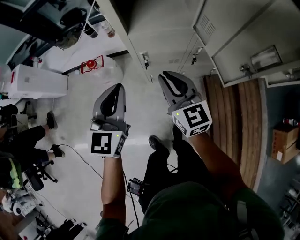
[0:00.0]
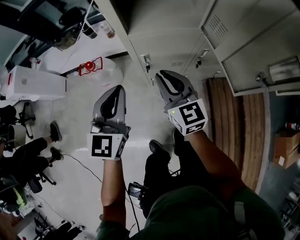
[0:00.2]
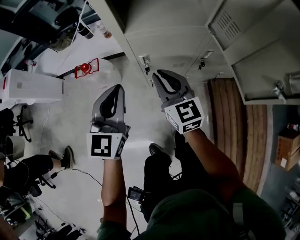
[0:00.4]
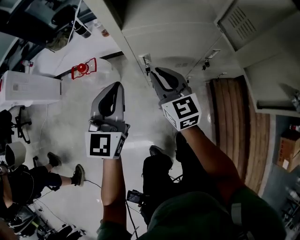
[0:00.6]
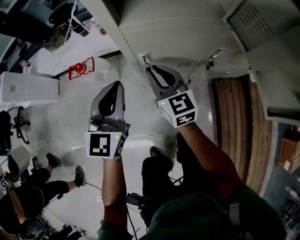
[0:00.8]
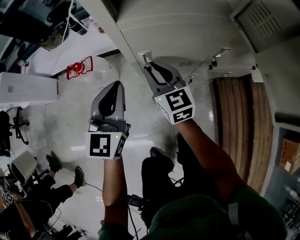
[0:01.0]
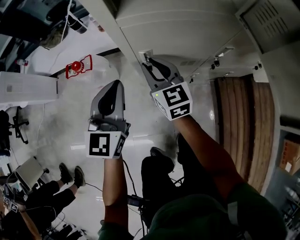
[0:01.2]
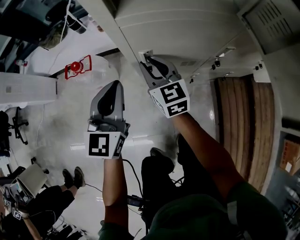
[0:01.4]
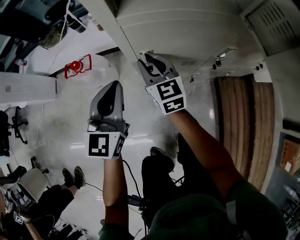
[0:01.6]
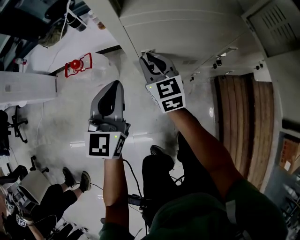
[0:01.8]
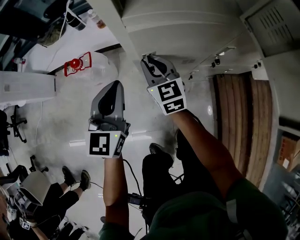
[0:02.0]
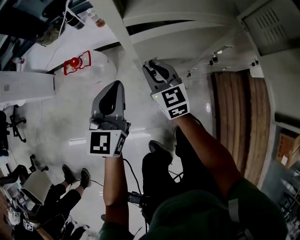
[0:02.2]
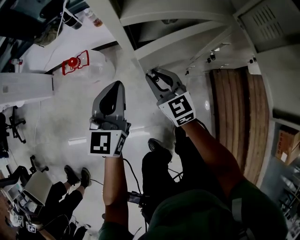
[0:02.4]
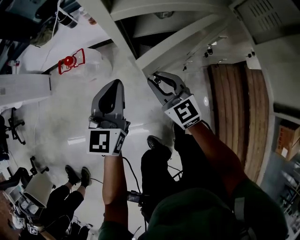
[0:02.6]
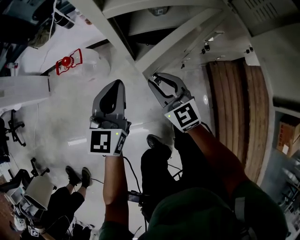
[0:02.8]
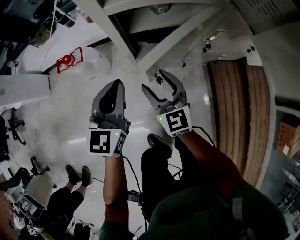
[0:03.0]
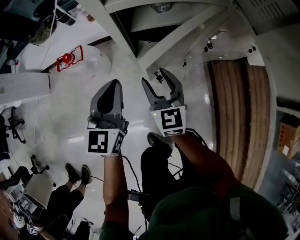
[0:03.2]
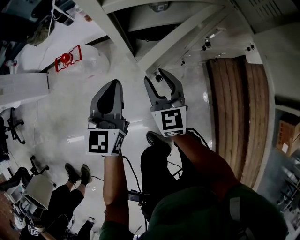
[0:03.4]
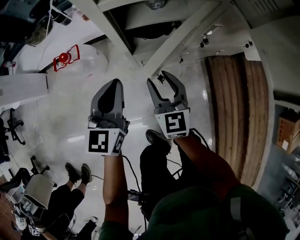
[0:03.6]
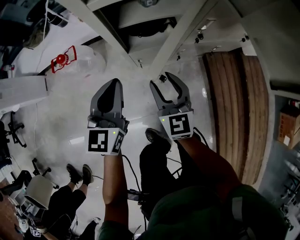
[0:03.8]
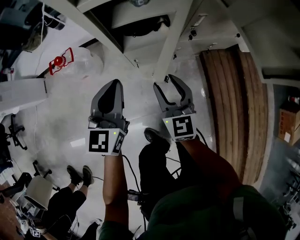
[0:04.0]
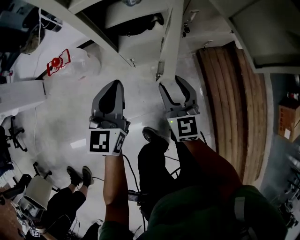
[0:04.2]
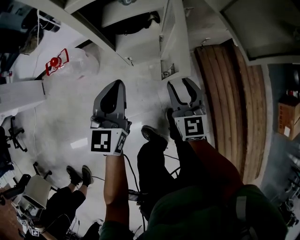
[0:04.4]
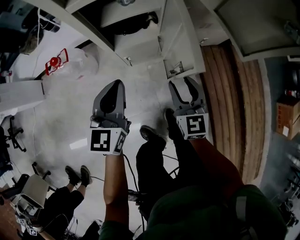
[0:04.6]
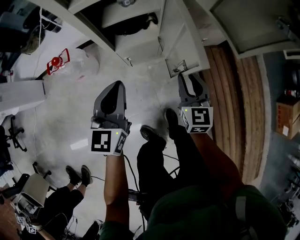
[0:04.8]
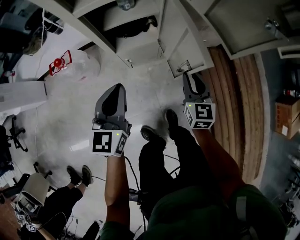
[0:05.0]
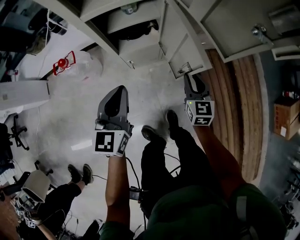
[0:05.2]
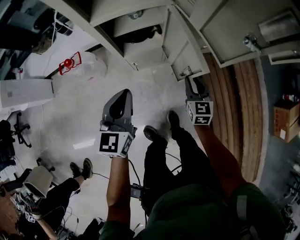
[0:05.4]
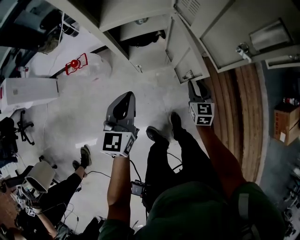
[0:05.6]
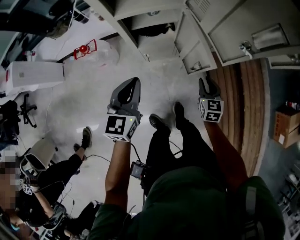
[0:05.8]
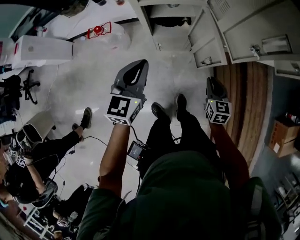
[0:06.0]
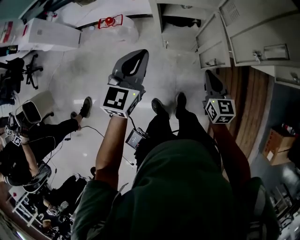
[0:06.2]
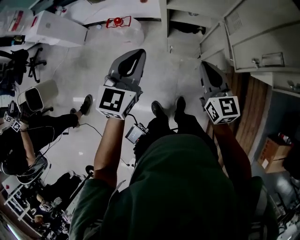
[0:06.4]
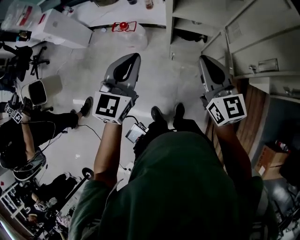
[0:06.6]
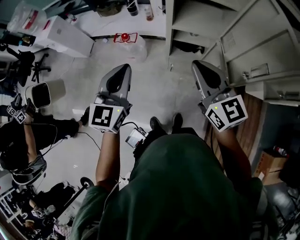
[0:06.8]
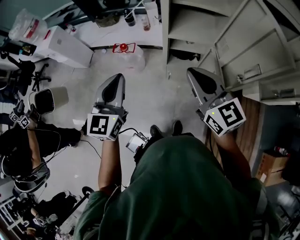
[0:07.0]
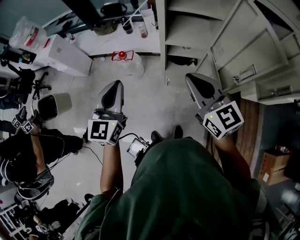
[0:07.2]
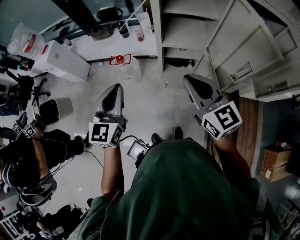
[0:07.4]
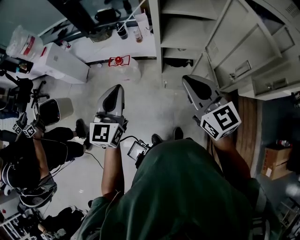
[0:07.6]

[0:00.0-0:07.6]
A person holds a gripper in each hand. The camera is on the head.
0.0 to 1.6 s: Both grippers move downward and forward, some 25 cm.
1.6 to 3.0 s: The right gripper shifts roughly 15 cm backward, and opens its fingers.
3.0 to 4.6 s: The right gripper travels to the right and backward by roughly 20 cm. The left gripper is displaced to the right and backward by roughly 10 cm.
4.6 to 6.0 s: The left gripper heads upward, covering roughly 15 cm, while the right gripper moves upward and to the right, about 10 cm, and closes its fingers.
6.0 to 7.6 s: The right gripper shifts roughly 35 cm upward, and rotates about 40 degrees; the left gripper heads upward, covering roughly 15 cm, and turns by about 20 degrees.

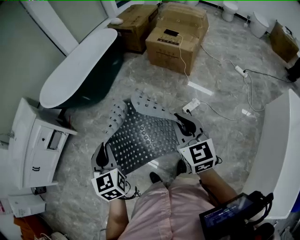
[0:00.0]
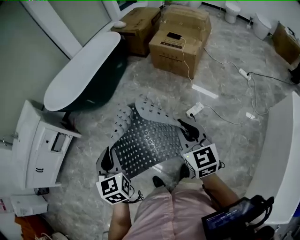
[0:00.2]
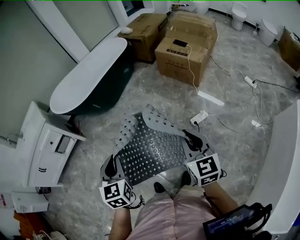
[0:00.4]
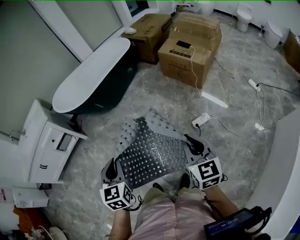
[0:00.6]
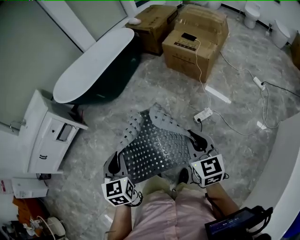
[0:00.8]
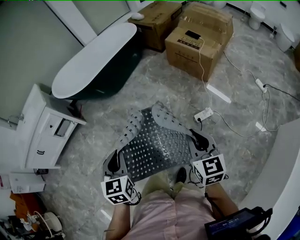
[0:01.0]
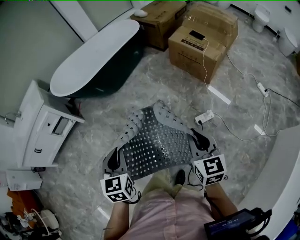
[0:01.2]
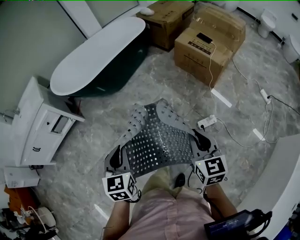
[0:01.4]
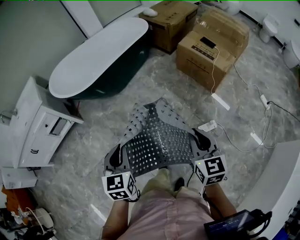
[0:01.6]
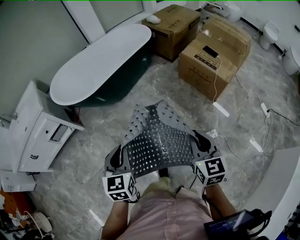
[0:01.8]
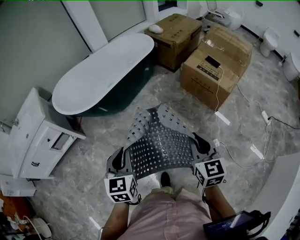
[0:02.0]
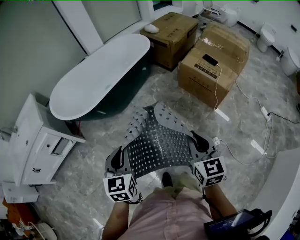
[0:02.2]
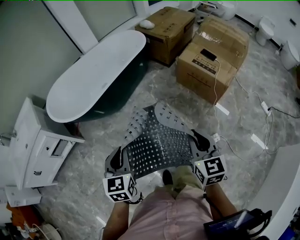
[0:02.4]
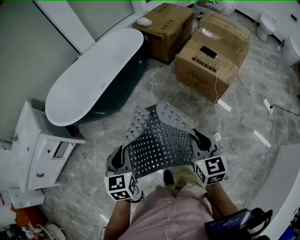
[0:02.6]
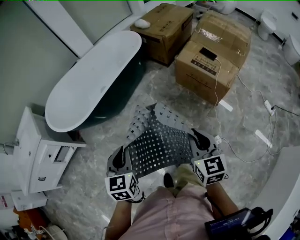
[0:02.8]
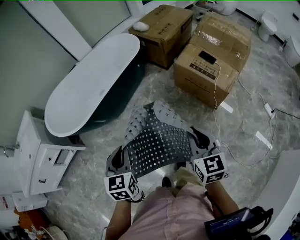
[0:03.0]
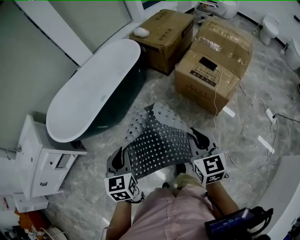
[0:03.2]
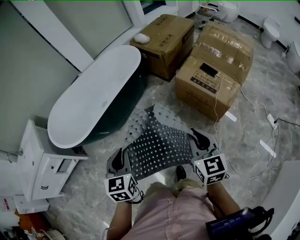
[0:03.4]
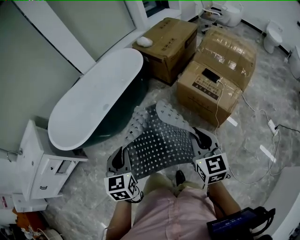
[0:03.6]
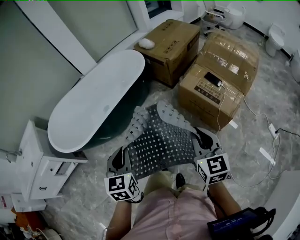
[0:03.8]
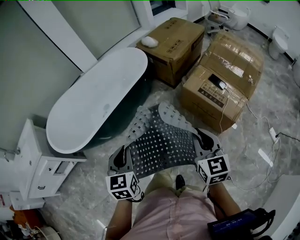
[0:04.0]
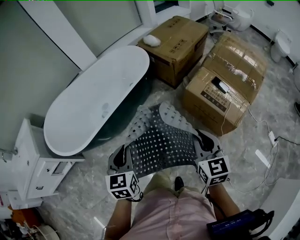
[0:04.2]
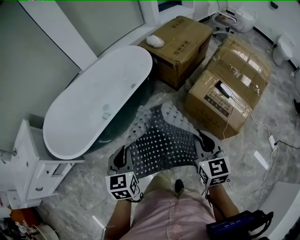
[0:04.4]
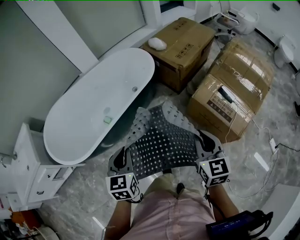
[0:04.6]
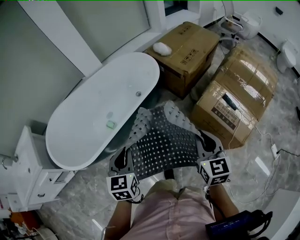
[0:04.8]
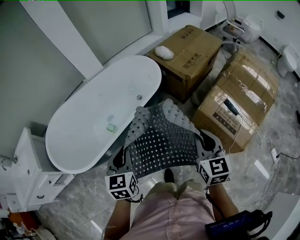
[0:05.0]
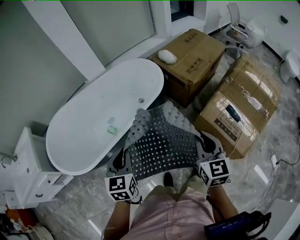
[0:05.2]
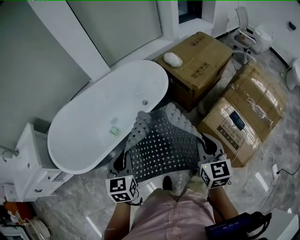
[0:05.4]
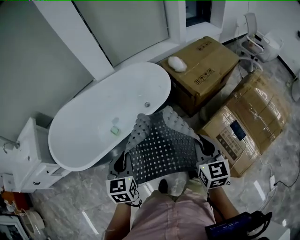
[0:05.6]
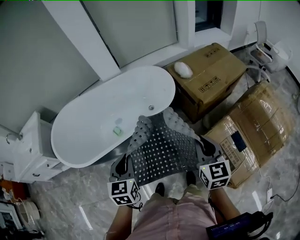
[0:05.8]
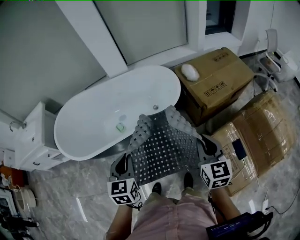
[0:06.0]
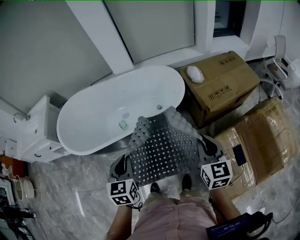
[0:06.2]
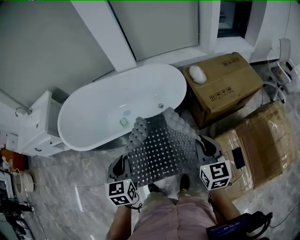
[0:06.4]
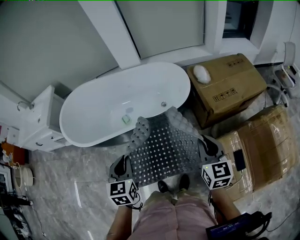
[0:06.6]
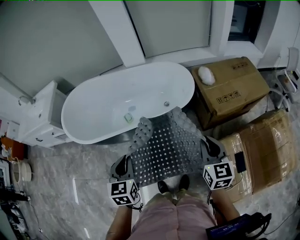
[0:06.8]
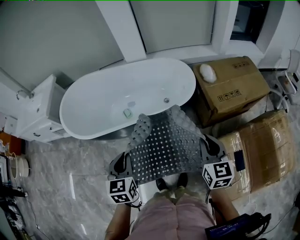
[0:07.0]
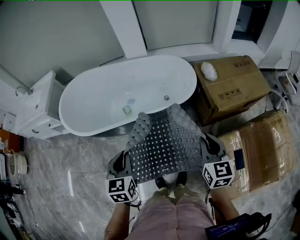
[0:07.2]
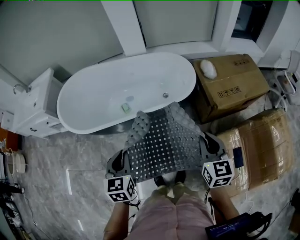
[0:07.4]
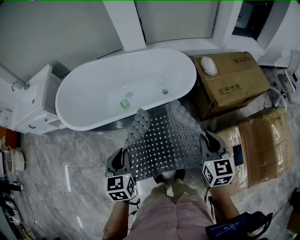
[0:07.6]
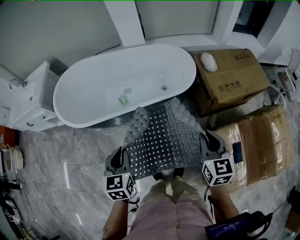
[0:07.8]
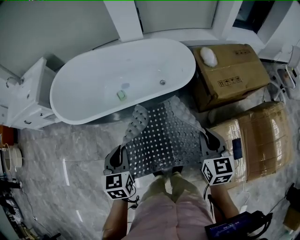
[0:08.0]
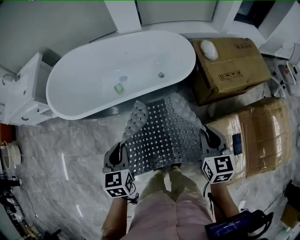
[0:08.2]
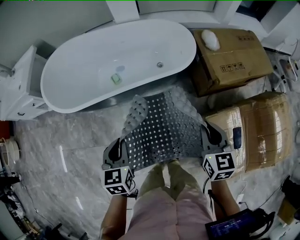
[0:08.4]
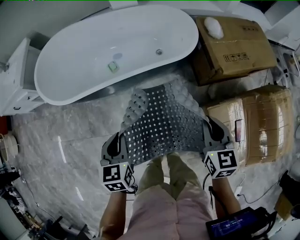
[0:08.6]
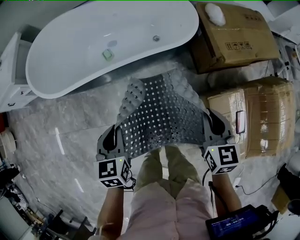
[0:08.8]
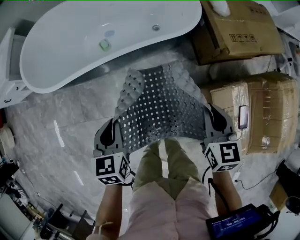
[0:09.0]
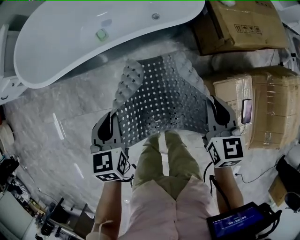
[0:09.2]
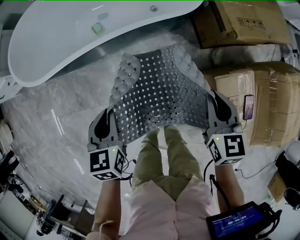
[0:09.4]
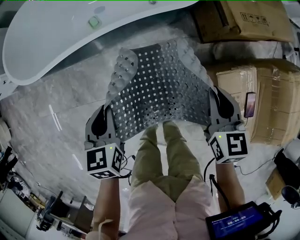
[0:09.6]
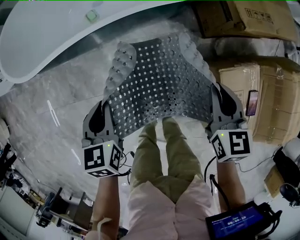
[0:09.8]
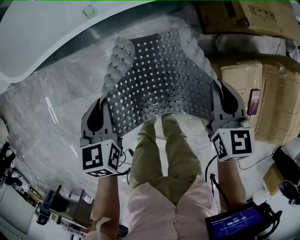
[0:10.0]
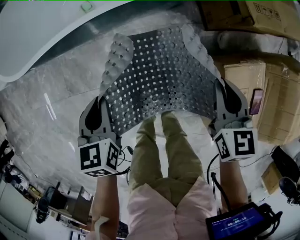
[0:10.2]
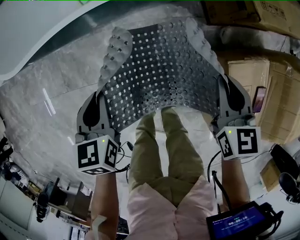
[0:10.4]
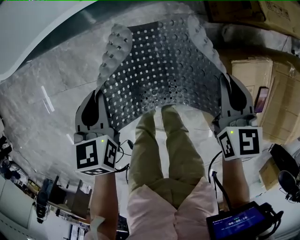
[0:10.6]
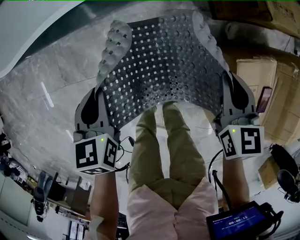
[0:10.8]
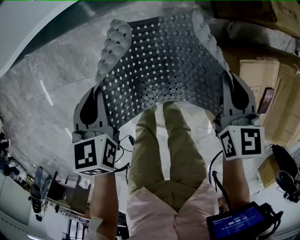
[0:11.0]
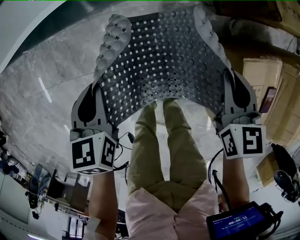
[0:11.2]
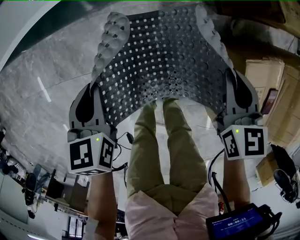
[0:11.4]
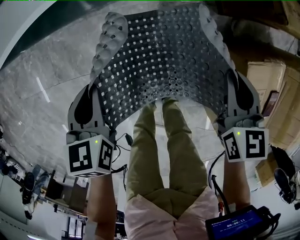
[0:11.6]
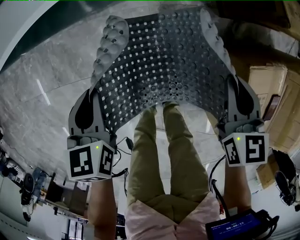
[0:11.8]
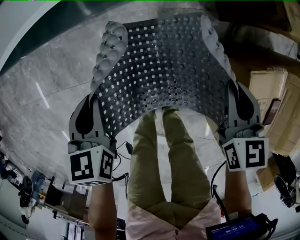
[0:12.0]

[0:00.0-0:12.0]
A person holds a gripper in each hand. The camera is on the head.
0.0 to 1.6 s: The grippers both shift forward and downward by approximately 20 cm.
1.6 to 3.0 s: The grippers both shift forward by roughly 25 cm.
3.0 to 4.4 s: The two grippers go roughly 25 cm forward.
4.4 to 6.0 s: The left gripper moves forward, about 15 cm, and turns by about 20 degrees; the right gripper is displaced forward by some 30 cm, and rotates about 20 degrees.
6.0 to 7.6 s: The left gripper ends up some 5 cm from where it was.
7.6 to 9.0 s: The two grippers go approximately 15 cm downward.
9.0 to 10.4 s: Both grippers move downward, roughly 10 cm.
10.4 to 12.0 s: The grippers move only a little.

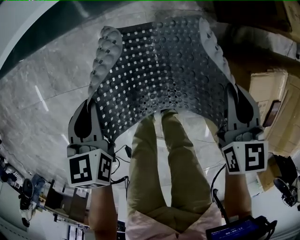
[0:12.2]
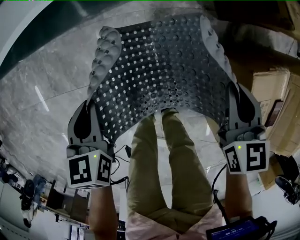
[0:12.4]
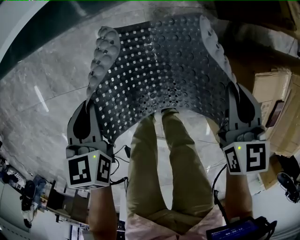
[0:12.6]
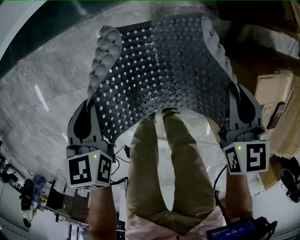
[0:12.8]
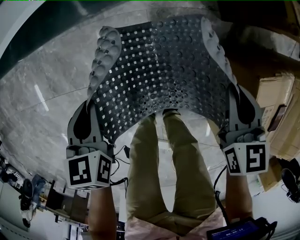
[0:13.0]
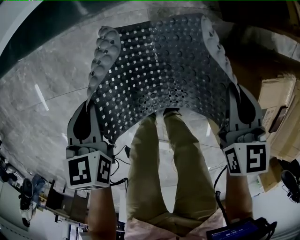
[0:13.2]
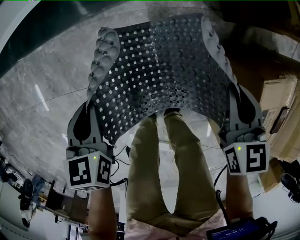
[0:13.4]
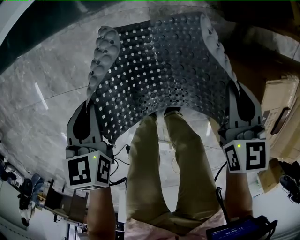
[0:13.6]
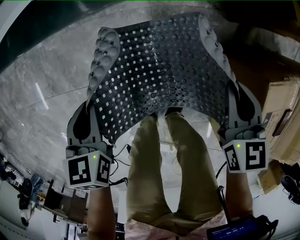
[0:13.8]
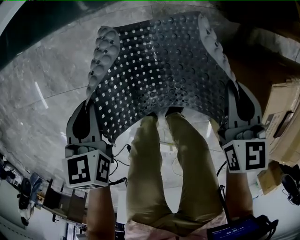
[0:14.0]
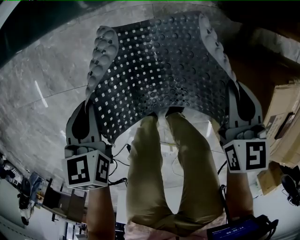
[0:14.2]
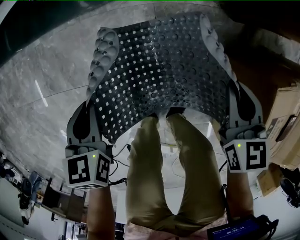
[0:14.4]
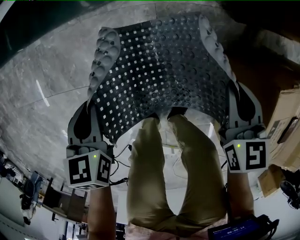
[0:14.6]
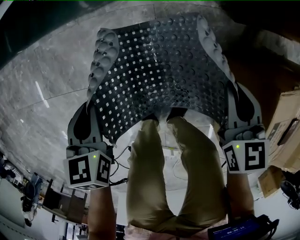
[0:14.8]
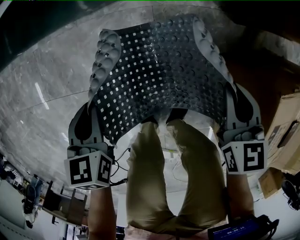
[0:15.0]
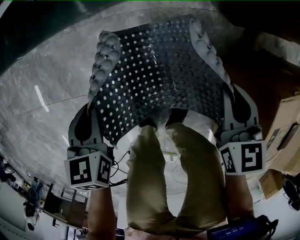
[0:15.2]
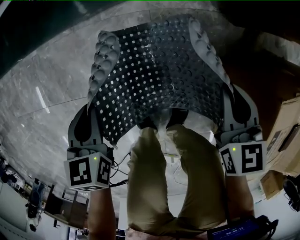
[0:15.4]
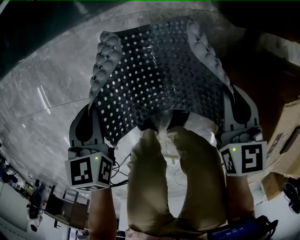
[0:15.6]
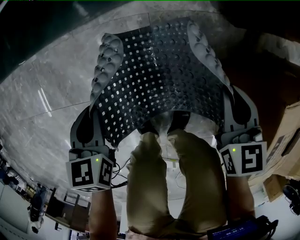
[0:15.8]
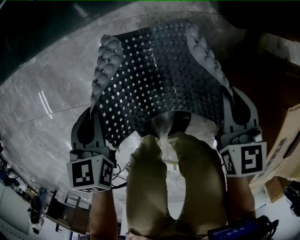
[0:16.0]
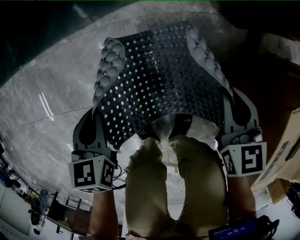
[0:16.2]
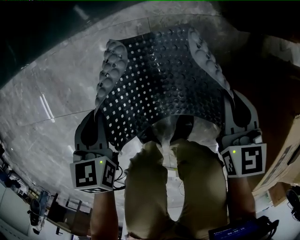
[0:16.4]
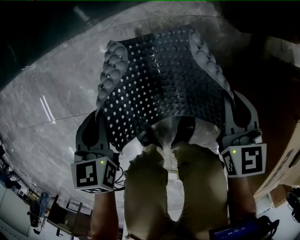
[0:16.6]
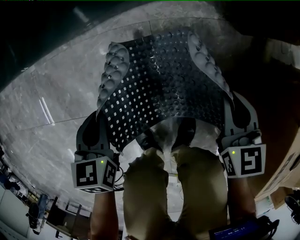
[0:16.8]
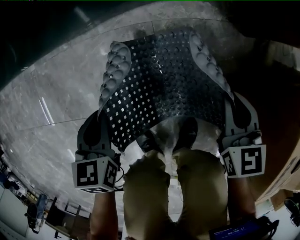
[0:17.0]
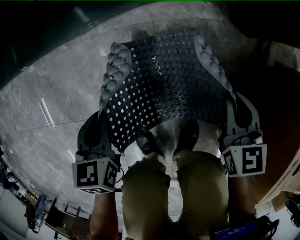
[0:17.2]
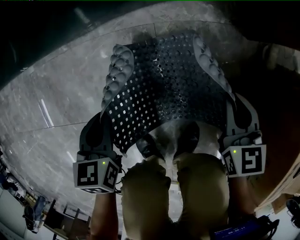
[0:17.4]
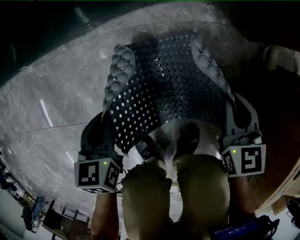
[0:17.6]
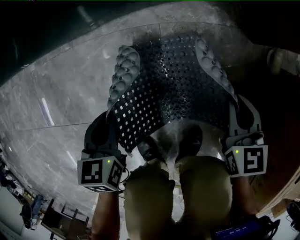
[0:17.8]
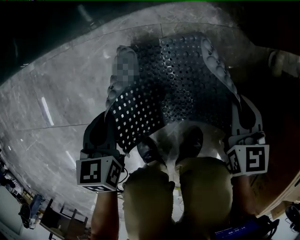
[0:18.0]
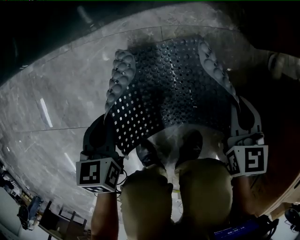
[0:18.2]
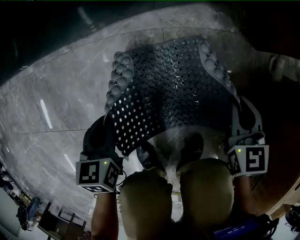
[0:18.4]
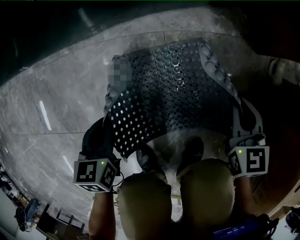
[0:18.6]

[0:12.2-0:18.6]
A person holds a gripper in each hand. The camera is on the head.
12.2 to 15.4 s: Both grippers stay put.
15.4 to 18.6 s: The grippers stay close to where they were, moving slightly.
